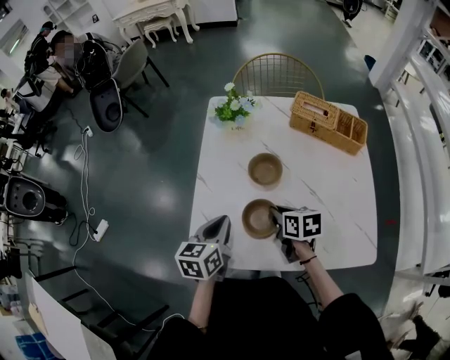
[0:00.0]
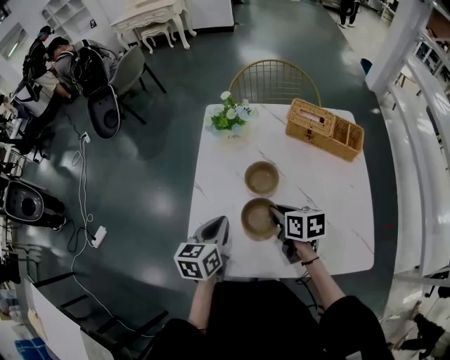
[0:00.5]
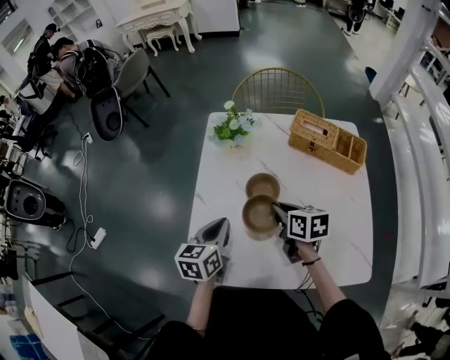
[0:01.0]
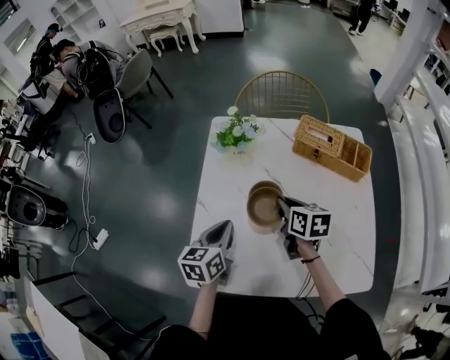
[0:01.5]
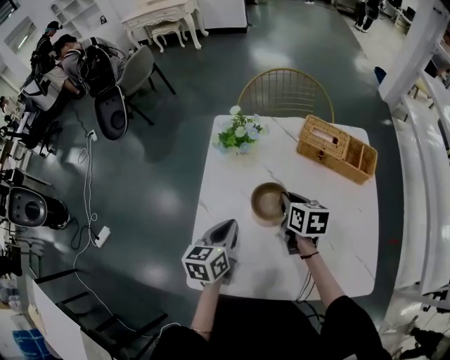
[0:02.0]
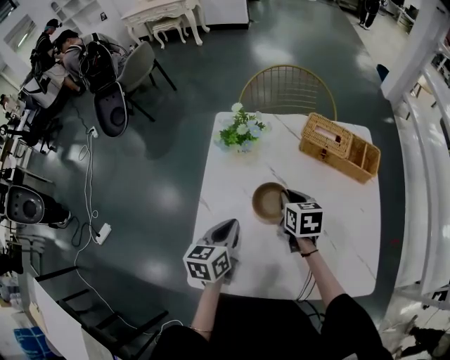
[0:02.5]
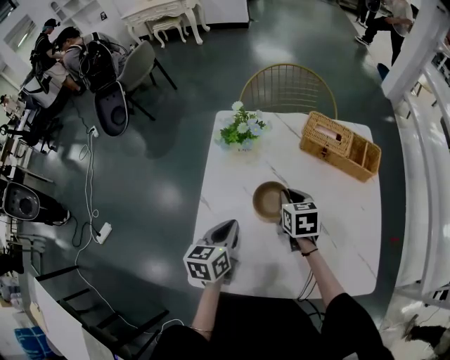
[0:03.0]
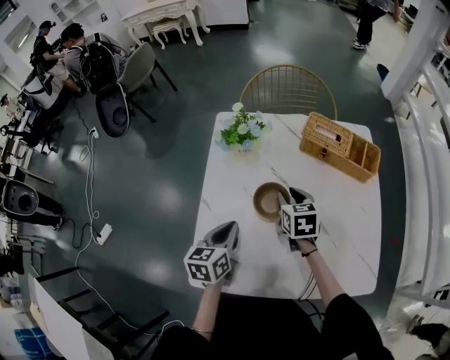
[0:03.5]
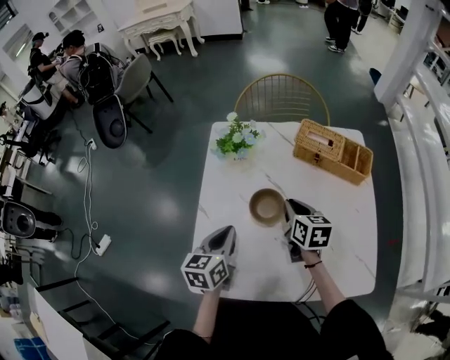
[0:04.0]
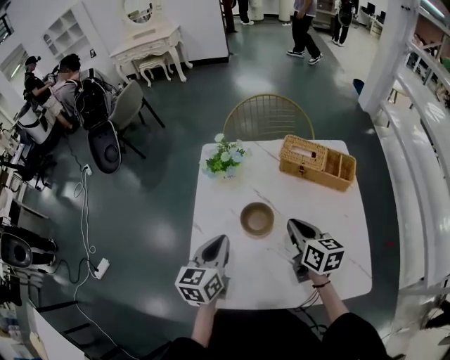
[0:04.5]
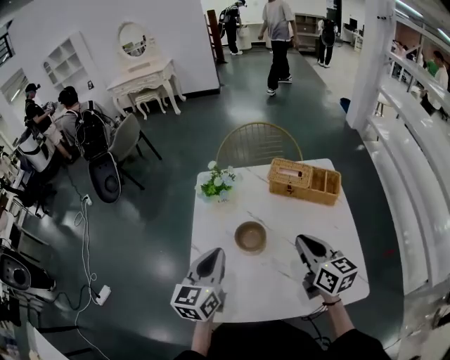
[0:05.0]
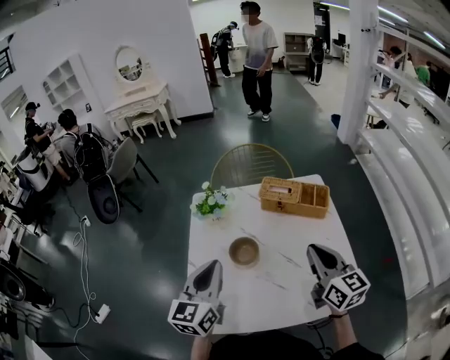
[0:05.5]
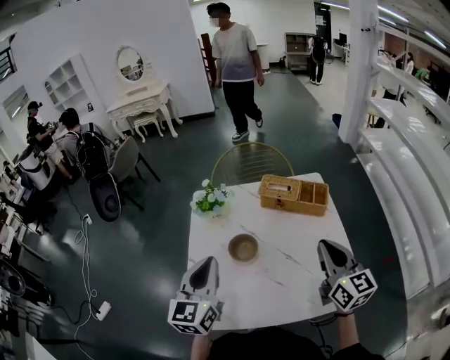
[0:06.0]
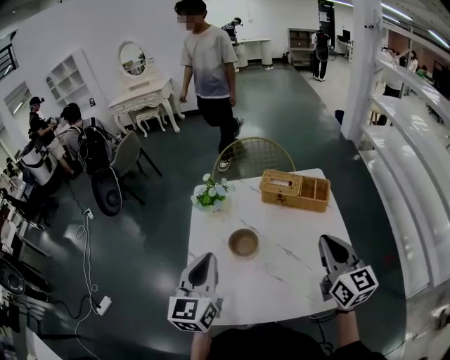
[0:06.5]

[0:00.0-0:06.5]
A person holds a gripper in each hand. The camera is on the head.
0:00.0 to 0:02.0: The left gripper shifts roughly 10 cm forward, while the right gripper travels forward by about 15 cm.
0:02.0 to 0:04.5: The left gripper heads upward, covering some 5 cm. Meanwhile the right gripper is displaced backward and upward by some 10 cm.
0:04.5 to 0:06.5: The left gripper shifts approximately 15 cm upward, and swivels some 20 degrees; the right gripper moves upward, to the right and backward, some 25 cm, and turns by about 30 degrees.

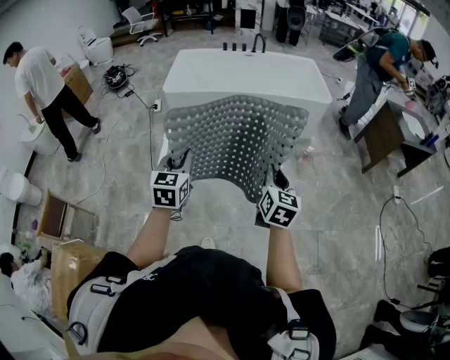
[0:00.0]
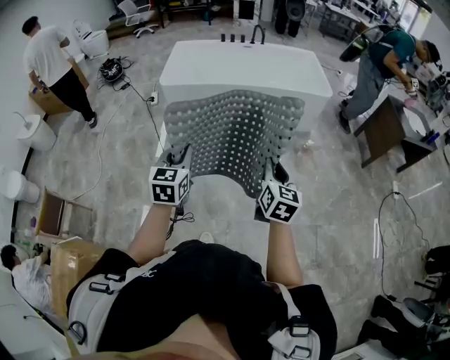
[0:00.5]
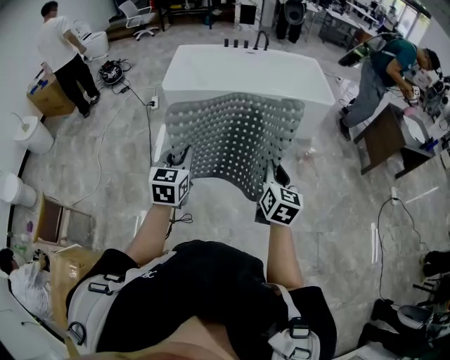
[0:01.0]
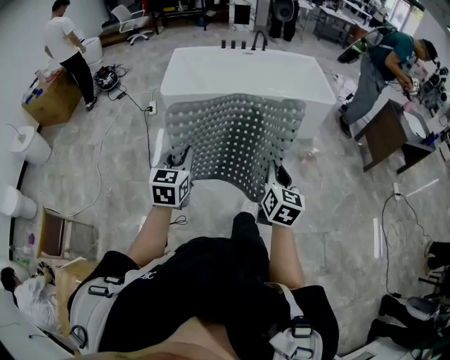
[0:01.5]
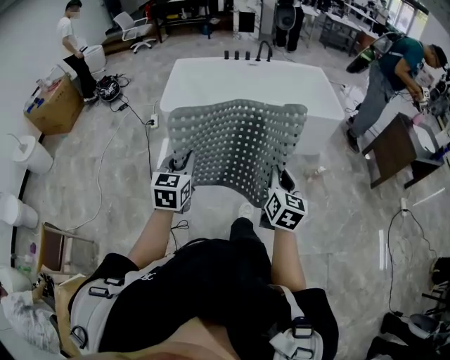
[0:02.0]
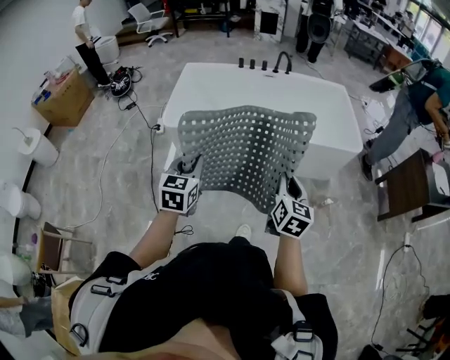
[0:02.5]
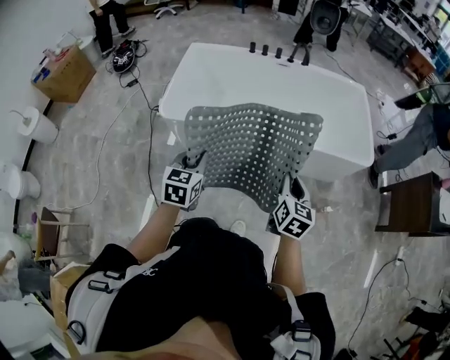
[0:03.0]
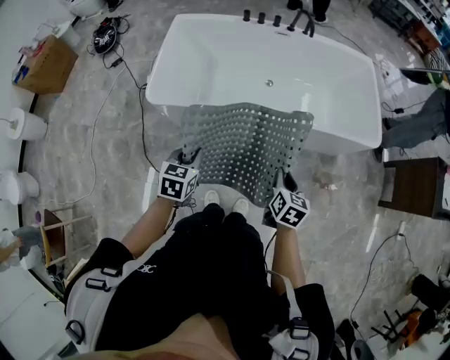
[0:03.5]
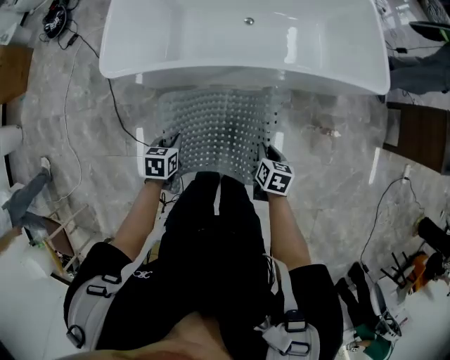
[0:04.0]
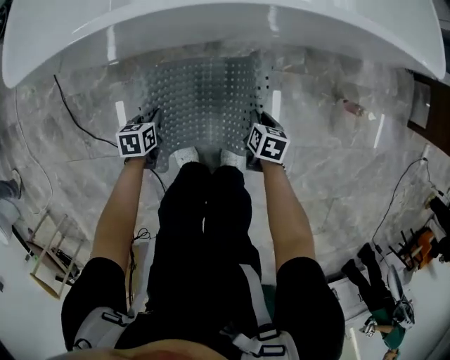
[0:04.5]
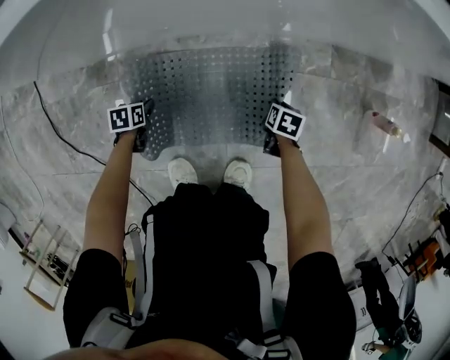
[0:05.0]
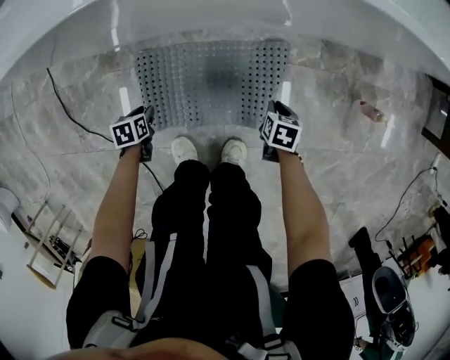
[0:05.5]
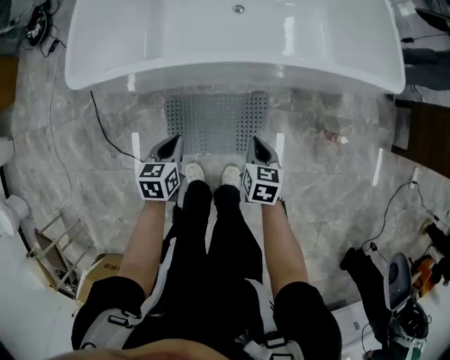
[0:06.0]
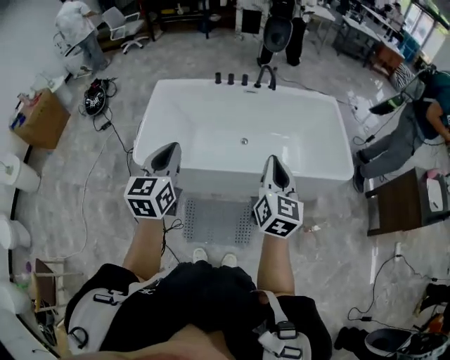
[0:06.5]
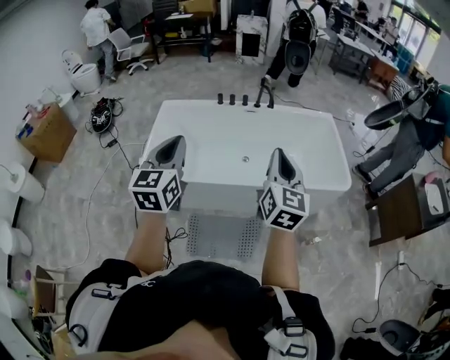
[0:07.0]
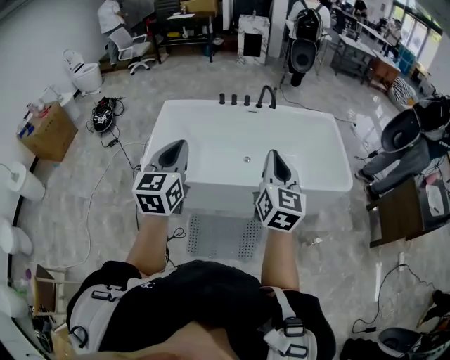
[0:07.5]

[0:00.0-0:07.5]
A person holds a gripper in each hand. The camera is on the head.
0:00.0 to 0:02.0: The grippers both shift forward by roughly 20 cm.
0:02.0 to 0:04.0: The right gripper travels forward and downward by roughly 50 cm, and angles its fingers downward, by about 40 degrees. The left gripper goes approximately 50 cm downward and forward, and angles its fingers downward, by approximately 40 degrees.
0:04.0 to 0:05.5: Both grippers move downward, roughly 50 cm. The left gripper rotates about 20 degrees, and opens its fingers.
0:05.5 to 0:07.5: Both grippers move upward, roughly 1 m. The right gripper tips its fingers upward by some 70 degrees; the left gripper tilts its fingers approximately 70 degrees upward, and closes its fingers.

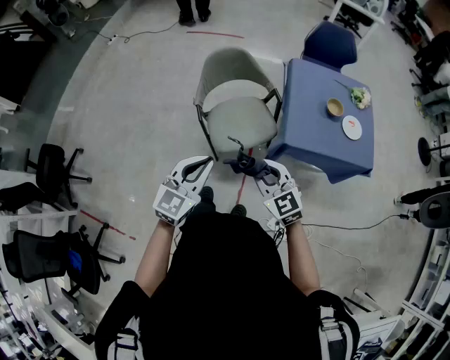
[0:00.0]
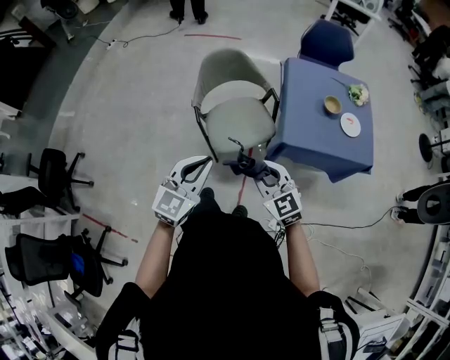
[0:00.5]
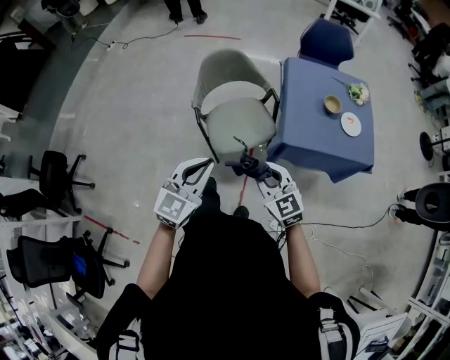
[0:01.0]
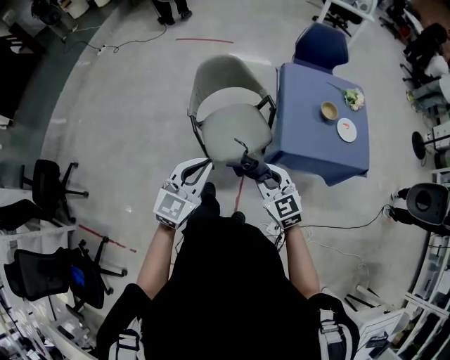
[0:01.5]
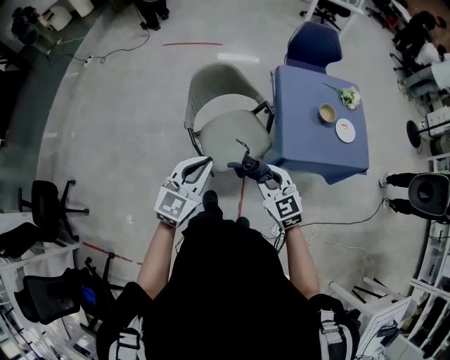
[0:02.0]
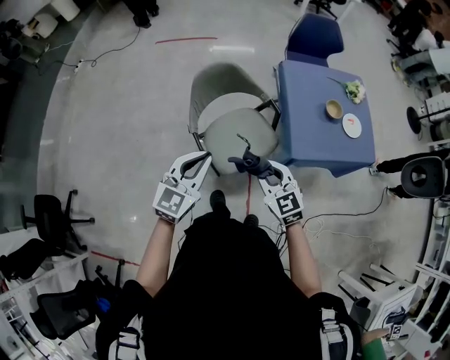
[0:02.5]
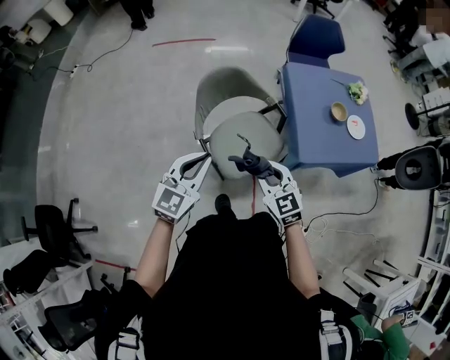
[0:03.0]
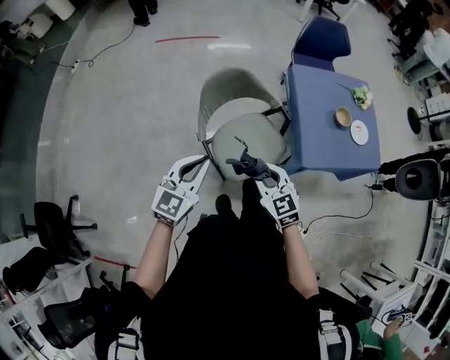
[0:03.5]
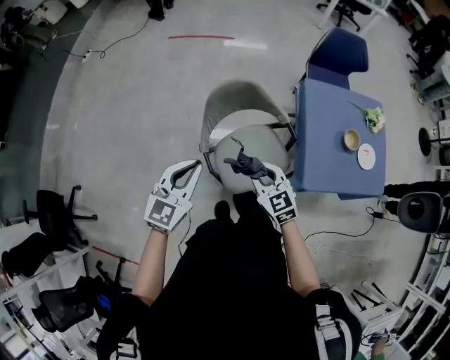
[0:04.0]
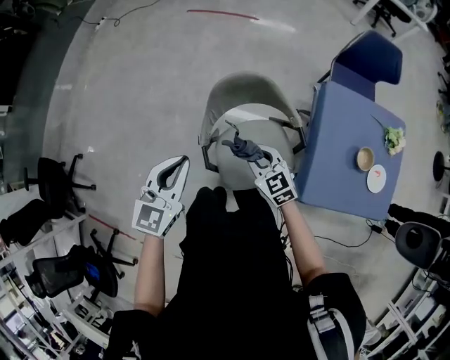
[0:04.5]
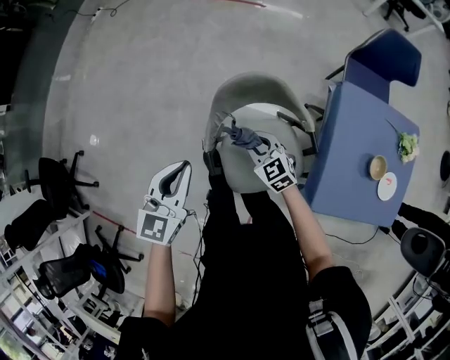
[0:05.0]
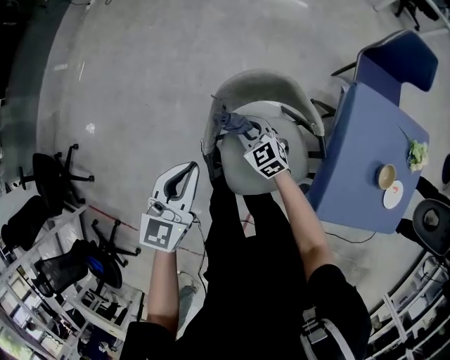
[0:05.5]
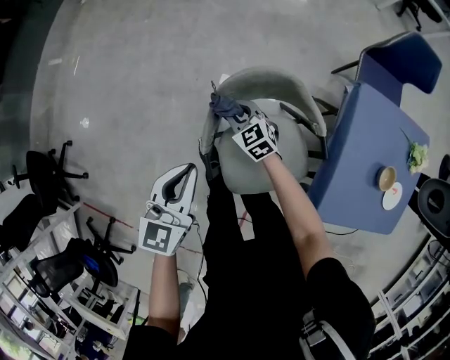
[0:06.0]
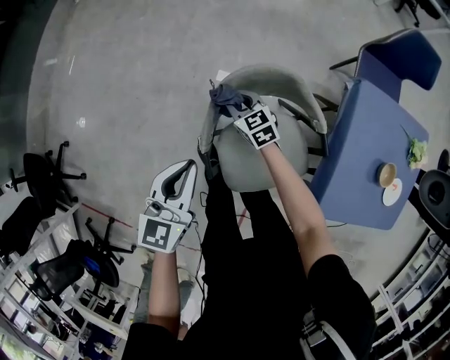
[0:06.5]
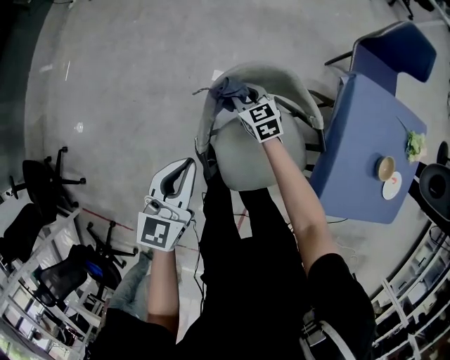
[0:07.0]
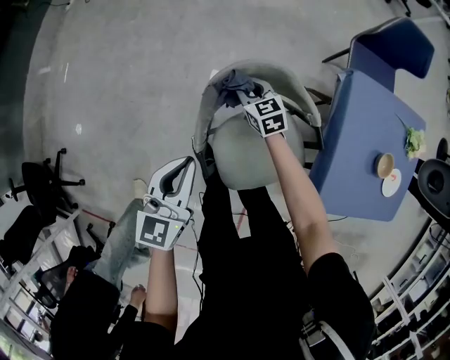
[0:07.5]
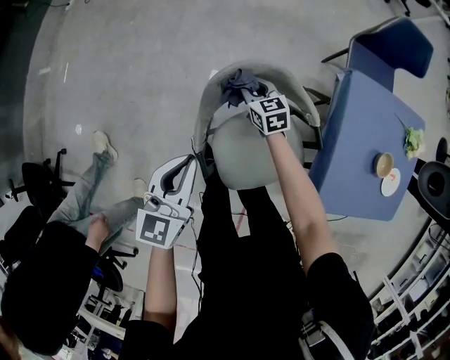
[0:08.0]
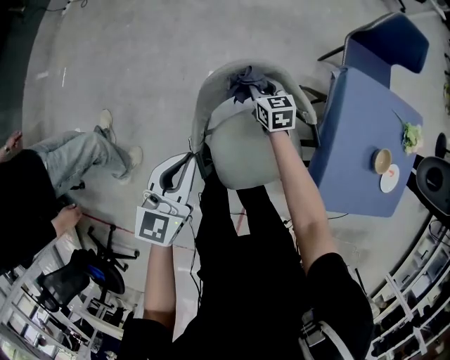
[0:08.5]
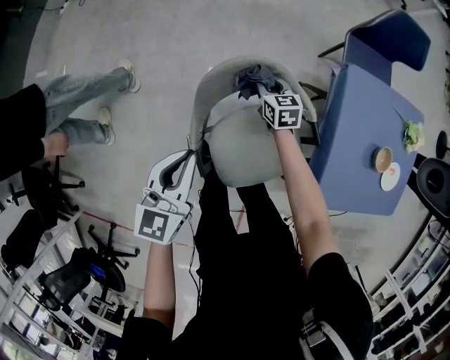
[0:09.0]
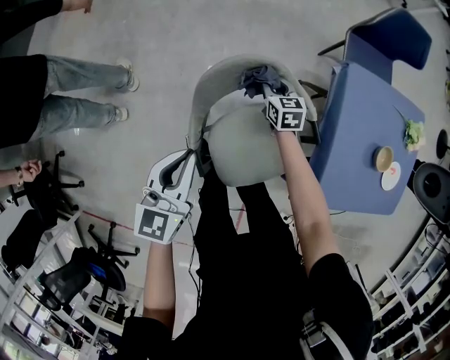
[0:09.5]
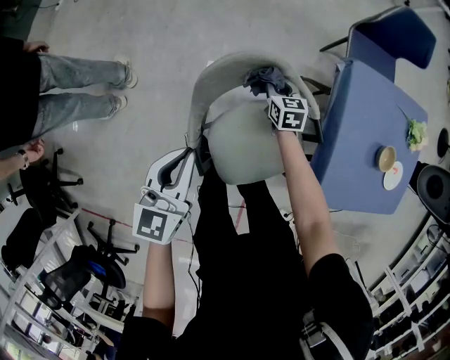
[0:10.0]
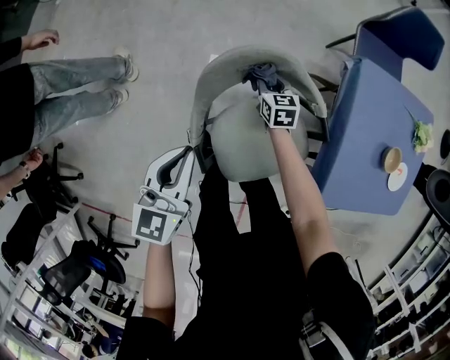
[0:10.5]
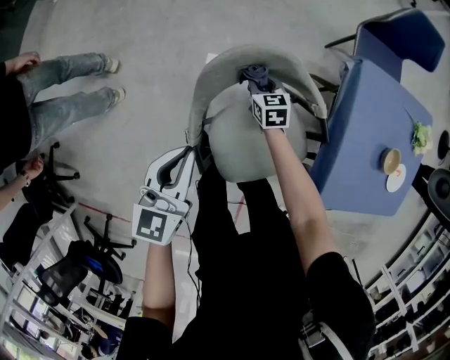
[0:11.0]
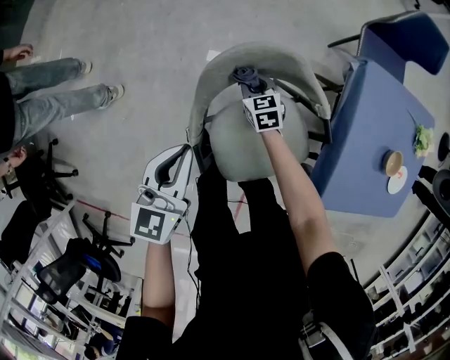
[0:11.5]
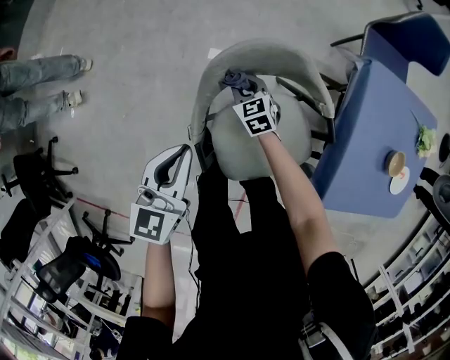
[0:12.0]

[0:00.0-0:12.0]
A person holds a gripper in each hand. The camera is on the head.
0:00.0 to 0:02.0: The grippers both shift forward by about 10 cm.
0:02.0 to 0:04.0: The two grippers go some 25 cm forward and to the left.
0:04.0 to 0:06.0: The left gripper moves forward and downward, about 25 cm, and swivels some 30 degrees; the right gripper is displaced forward and downward by roughly 40 cm.
0:06.0 to 0:08.0: The right gripper shifts some 10 cm to the right and forward, and rotates approximately 20 degrees.
0:08.0 to 0:10.0: The right gripper goes some 10 cm to the right and downward.
0:10.0 to 0:12.0: The left gripper is displaced downward by about 5 cm; the right gripper goes about 15 cm to the left, and swivels approximately 30 degrees.
